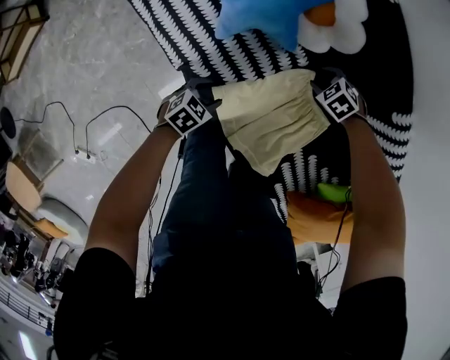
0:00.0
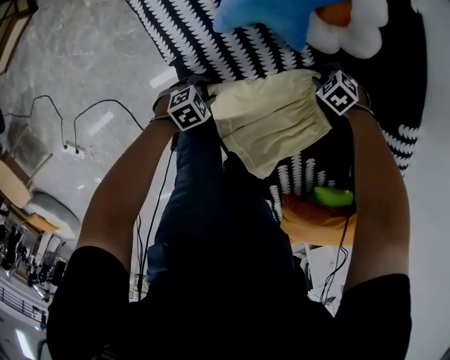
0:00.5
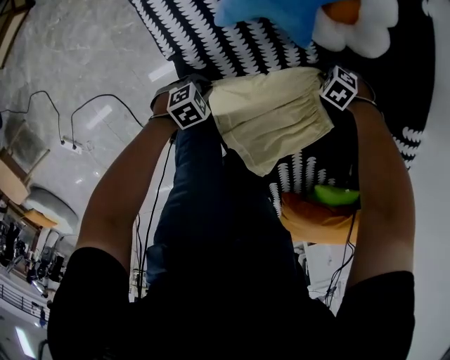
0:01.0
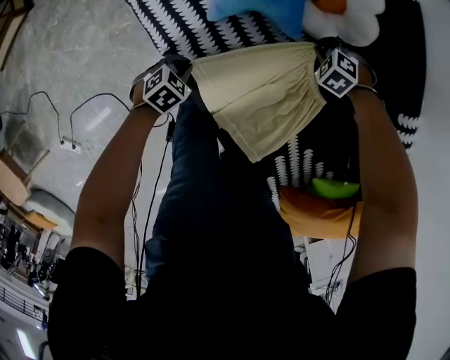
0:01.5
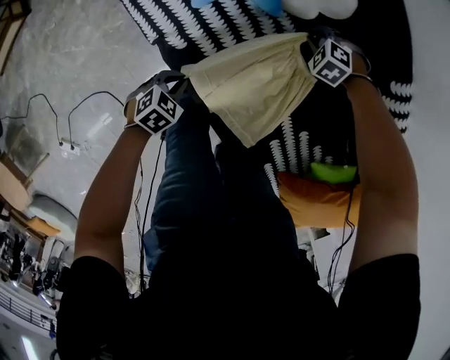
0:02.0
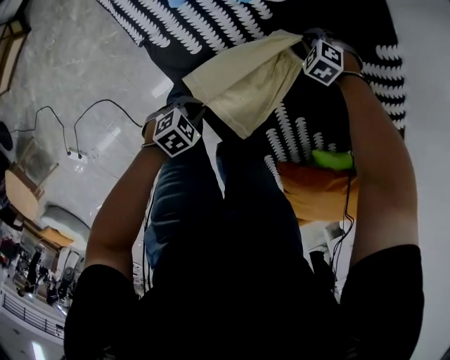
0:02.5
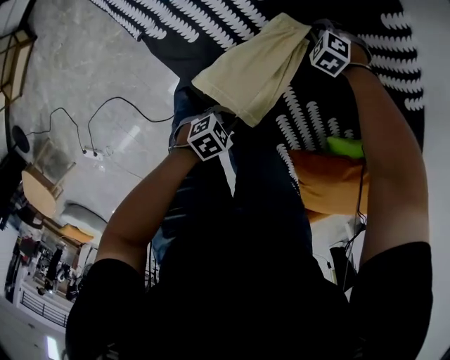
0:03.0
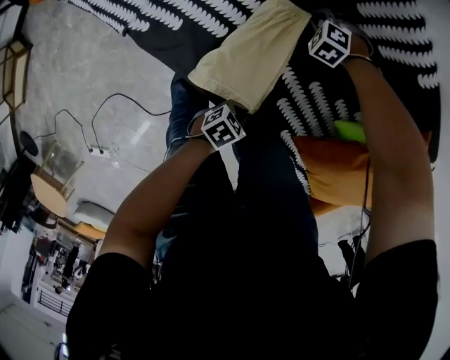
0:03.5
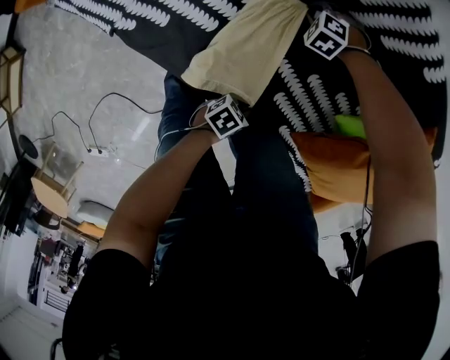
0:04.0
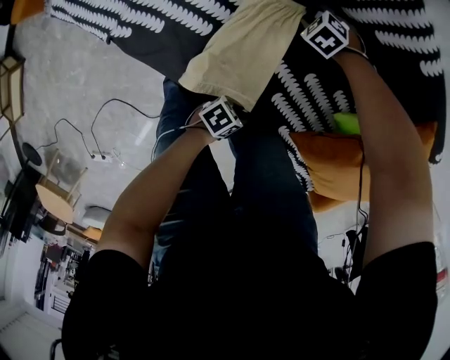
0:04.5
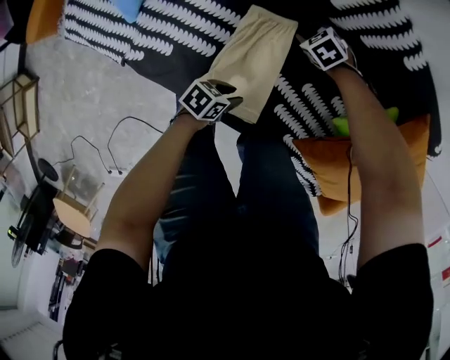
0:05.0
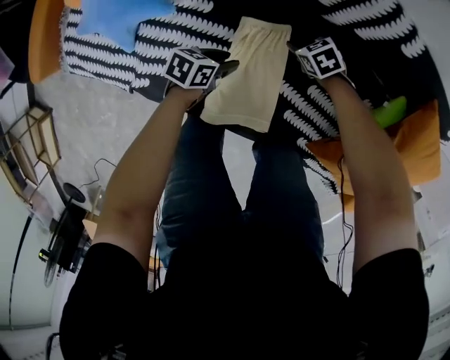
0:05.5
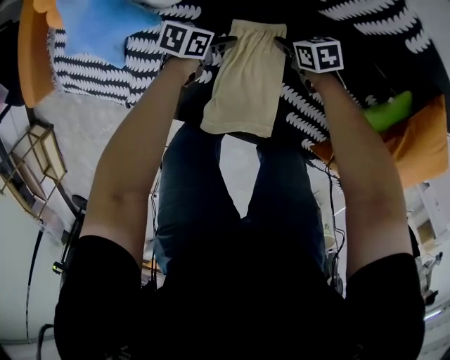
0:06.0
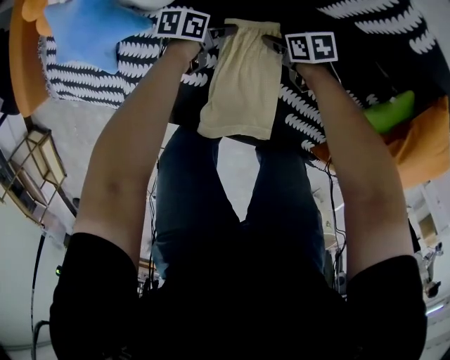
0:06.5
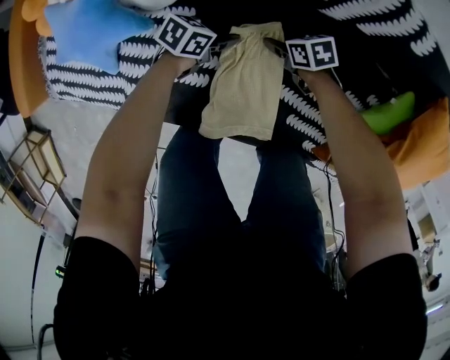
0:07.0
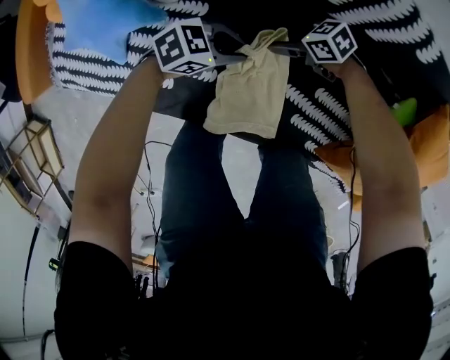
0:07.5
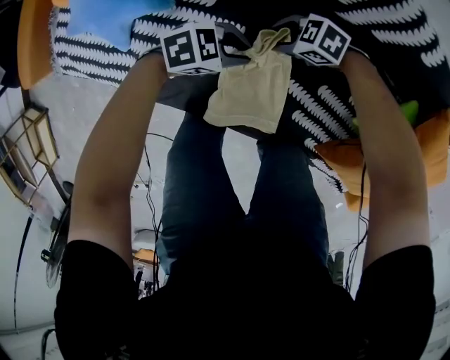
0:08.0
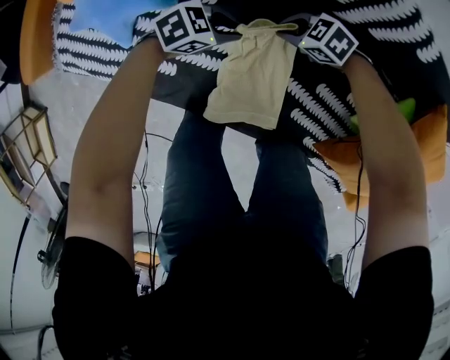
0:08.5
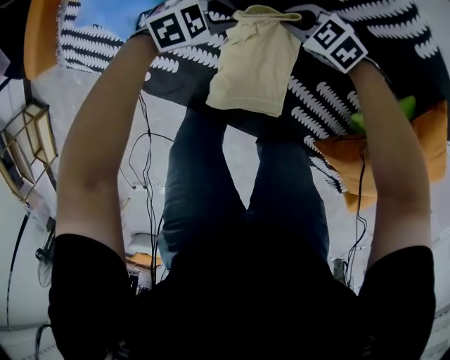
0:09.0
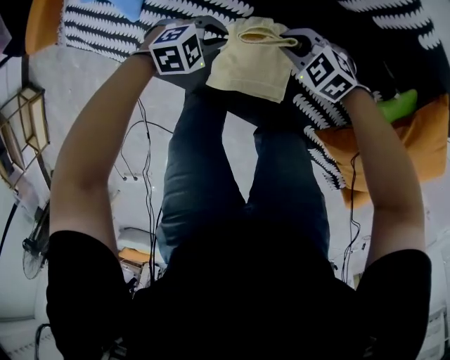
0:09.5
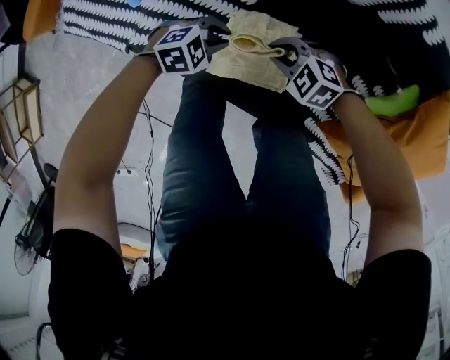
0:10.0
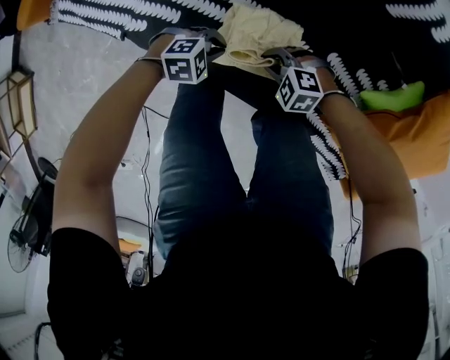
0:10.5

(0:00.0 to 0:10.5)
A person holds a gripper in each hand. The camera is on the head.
0:00.0 - 0:02.0: The left gripper travels downward and back again, some 10 cm each way, and closes; the right gripper reaches some 10 cm downward, then returns, changes its angle by about 30 degrees, and closes up.
0:02.0 - 0:04.0: The right gripper changes place by about 25 cm, while the left gripper shifts by about 40 cm, and turns by roughly 30 degrees.
0:04.0 - 0:06.5: The right gripper rotates around the line of its fingers by some 90 degrees, clockwise from behind, and opens up. The left gripper moves approximately 40 cm, turns by some 20 degrees, and opens its fingers.
0:06.5 - 0:08.5: Both grippers move upward, some 10 cm. The left gripper rolls clockwise, seen from behind, by about 60 degrees, and closes; the right gripper twists about 50 degrees counterclockwise, seen from behind, and closes its fingers.
0:08.5 - 0:10.5: The left gripper changes place by about 25 cm, and swivels roughly 20 degrees, while the right gripper changes place by approximately 25 cm, and turns by roughly 30 degrees.

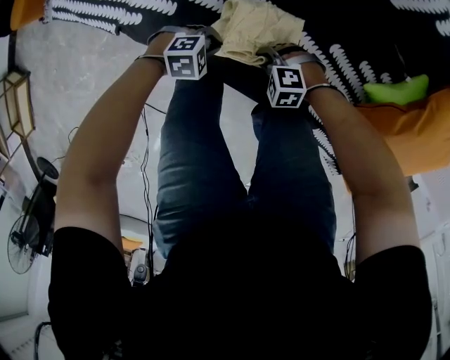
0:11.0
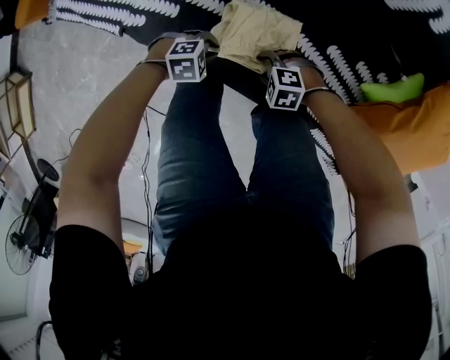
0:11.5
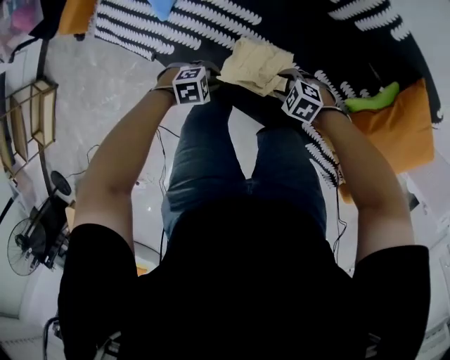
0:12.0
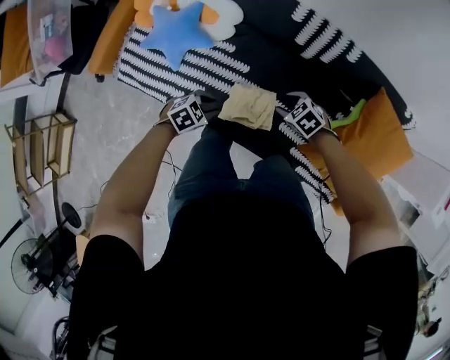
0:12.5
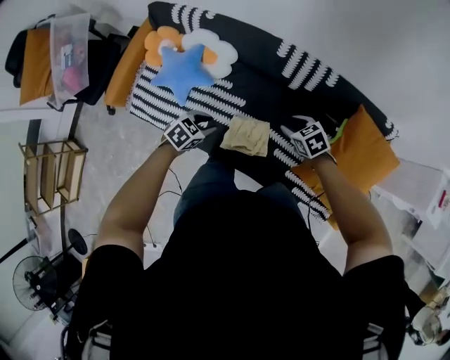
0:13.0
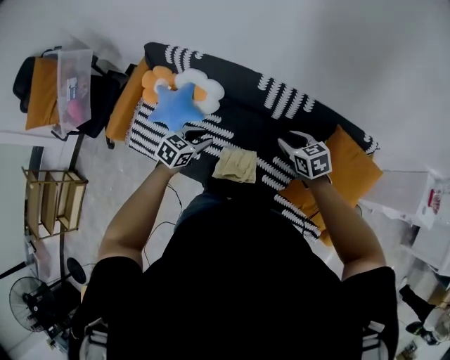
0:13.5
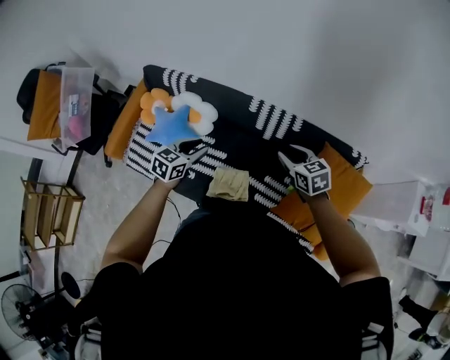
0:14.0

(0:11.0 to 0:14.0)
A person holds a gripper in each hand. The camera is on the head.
0:11.0 - 0:12.5: Both grippers travel together upward, approximately 30 cm. The left gripper swivels about 20 degrees, and opens its fingers. Meanwhile the right gripper twists some 50 degrees clockwise, seen from behind, and opens its fingers.
0:12.5 - 0:14.0: The grippers both shift upward by approximately 30 cm. The left gripper changes its angle by some 40 degrees, while the right gripper turns by some 40 degrees.

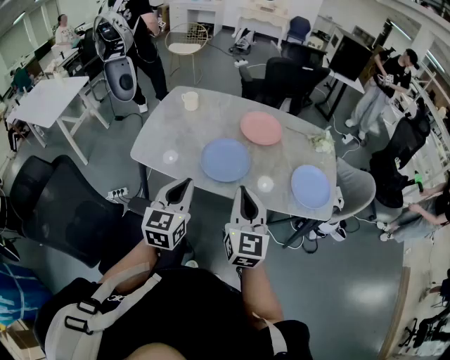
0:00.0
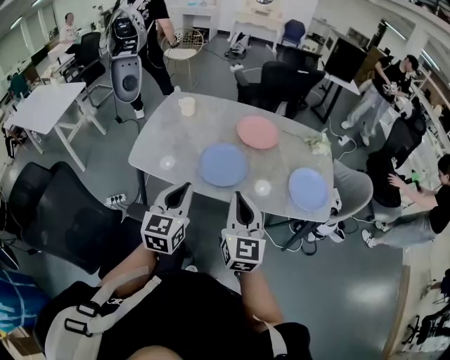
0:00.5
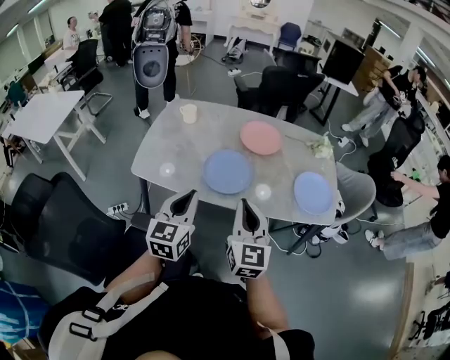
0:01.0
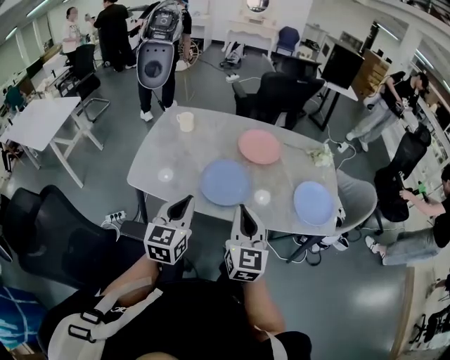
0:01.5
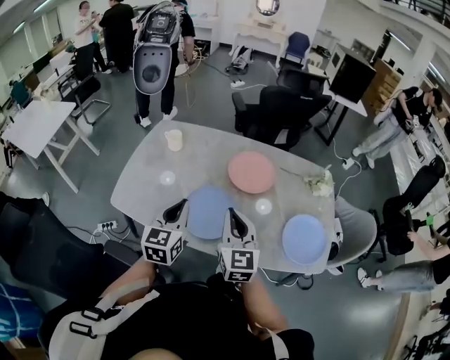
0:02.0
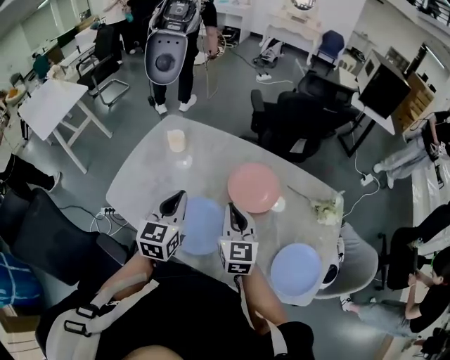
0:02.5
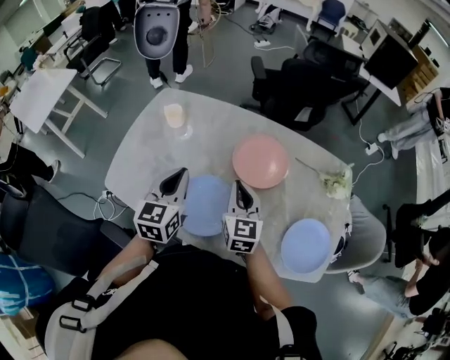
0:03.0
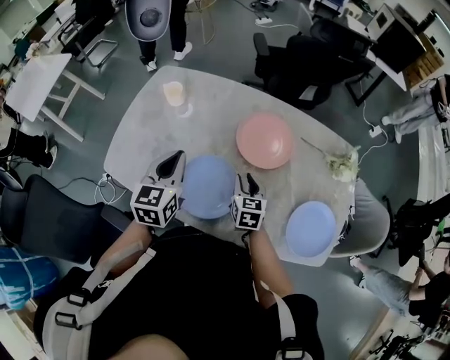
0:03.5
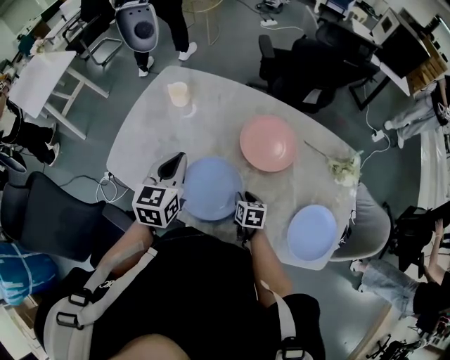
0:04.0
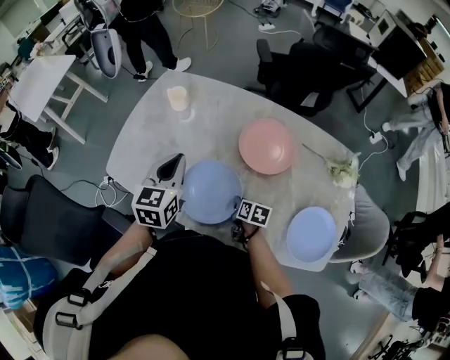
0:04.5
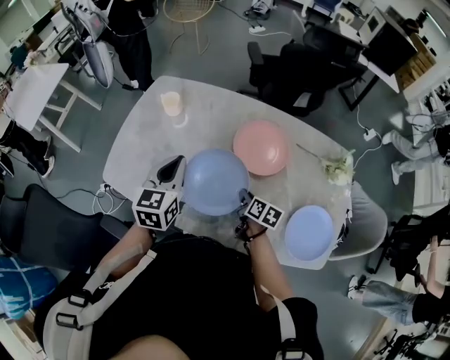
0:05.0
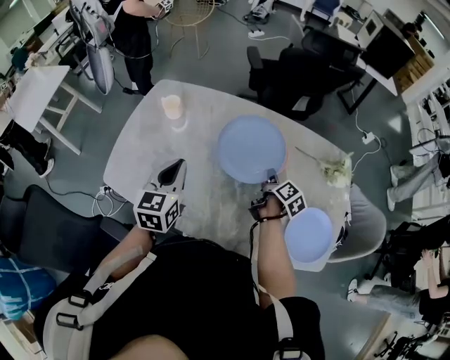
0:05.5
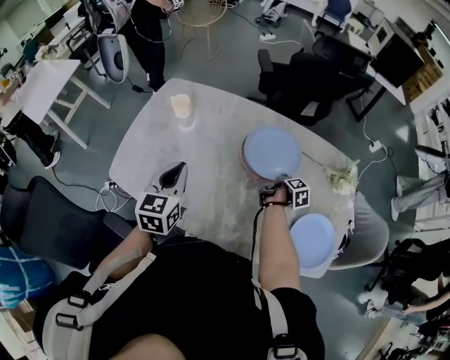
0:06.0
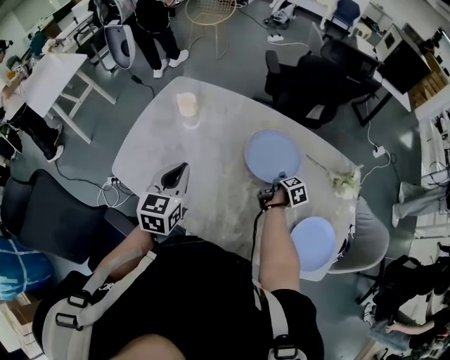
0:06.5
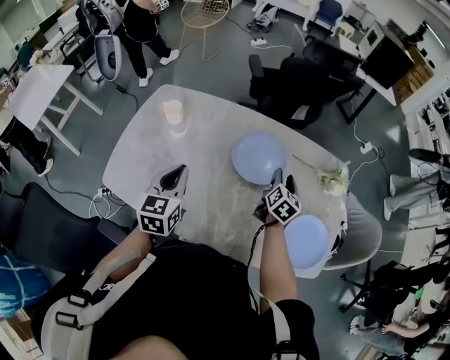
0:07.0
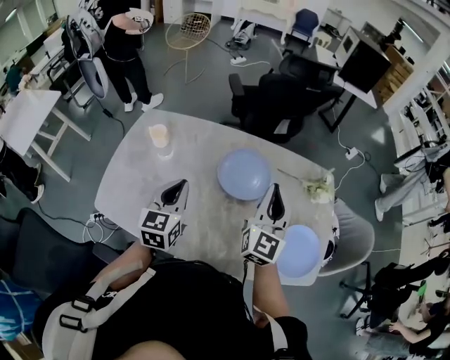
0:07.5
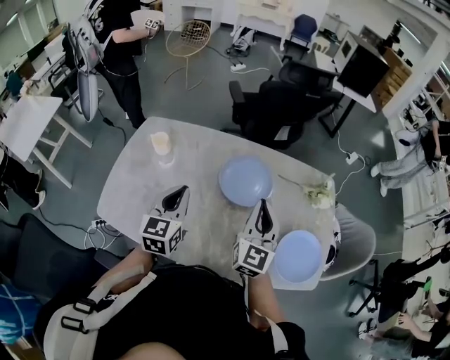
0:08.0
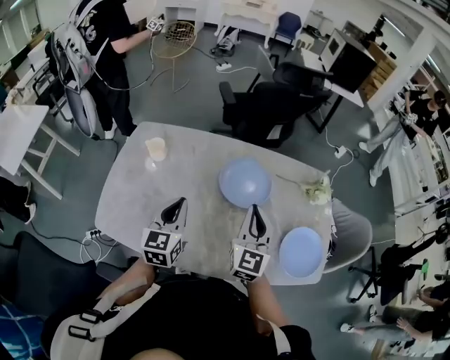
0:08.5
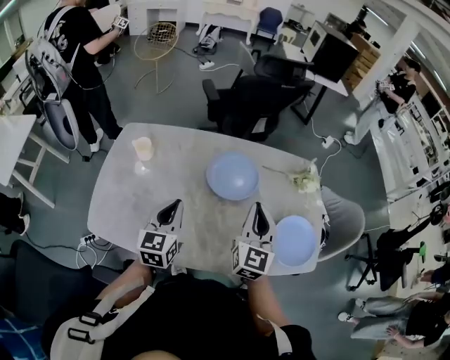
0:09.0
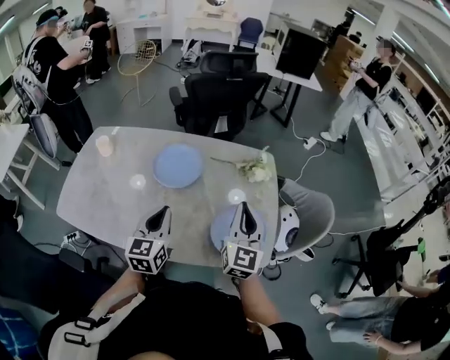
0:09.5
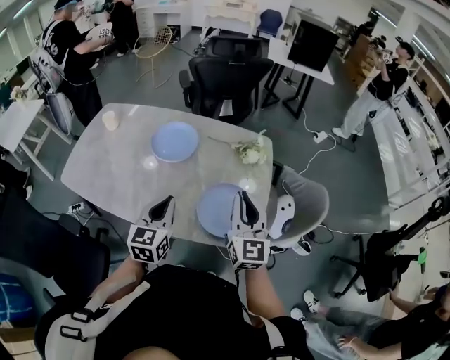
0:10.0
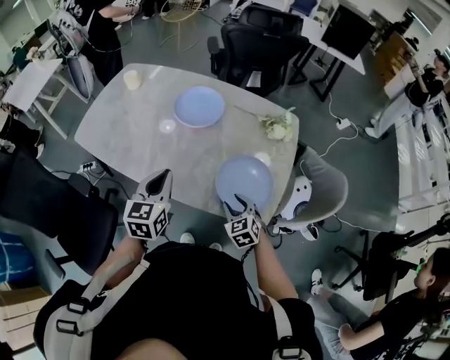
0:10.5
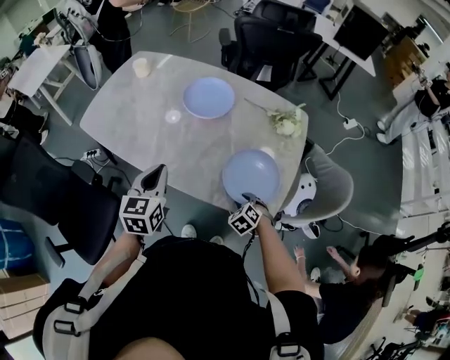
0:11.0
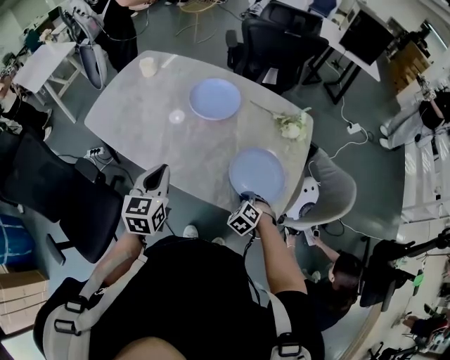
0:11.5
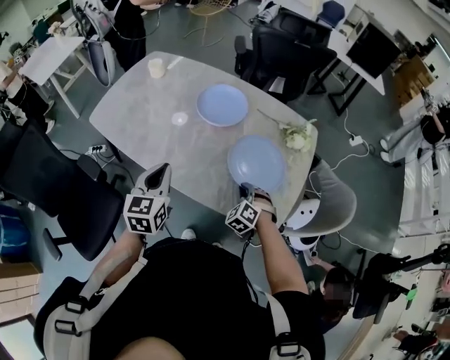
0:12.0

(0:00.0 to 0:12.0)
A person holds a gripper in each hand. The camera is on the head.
0:00.0 - 0:02.0: The grippers both shift forward by some 20 cm.
0:02.0 - 0:04.0: The left gripper goes approximately 10 cm forward. The right gripper heads downward, covering approximately 30 cm, tips its fingers downward by approximately 50 degrees, and opens its fingers.
0:04.0 - 0:06.0: The right gripper moves to the right and forward, roughly 20 cm, and twists some 70 degrees clockwise, seen from behind.
0:06.0 - 0:08.0: The right gripper travels upward by about 30 cm, rolls counterclockwise, seen from behind, by some 70 degrees, and opens, then closes once more. The left gripper ends up roughly 5 cm from where it was.
0:08.0 - 0:10.0: The two grippers go approximately 35 cm to the right and backward.
0:10.0 - 0:12.0: The right gripper is displaced downward by about 30 cm, angles its fingers downward, by some 50 degrees, and opens and closes again. The left gripper moves to the left, approximately 15 cm.

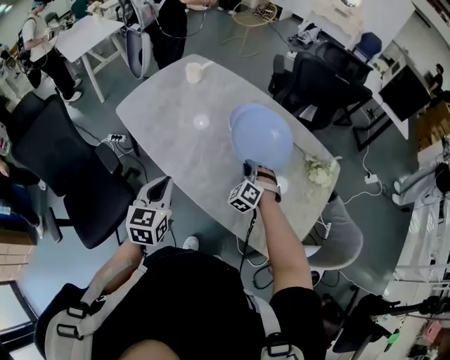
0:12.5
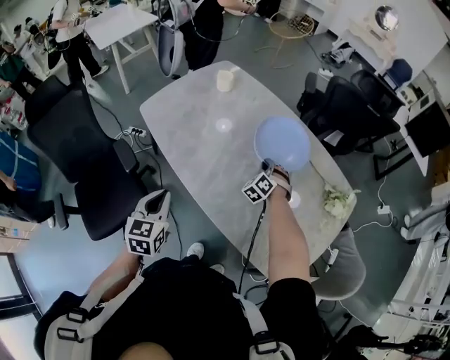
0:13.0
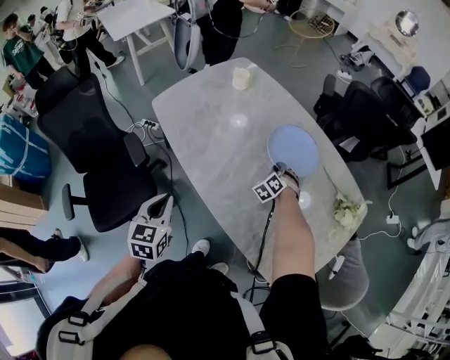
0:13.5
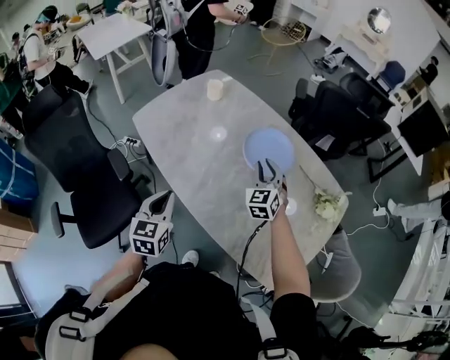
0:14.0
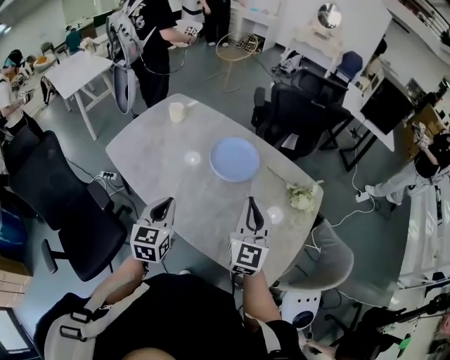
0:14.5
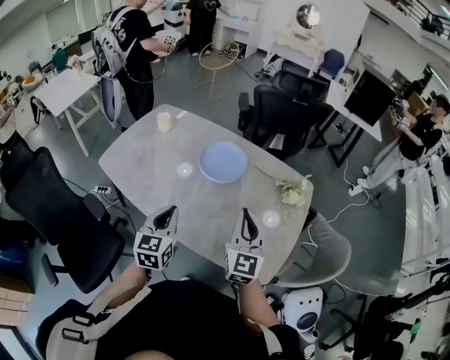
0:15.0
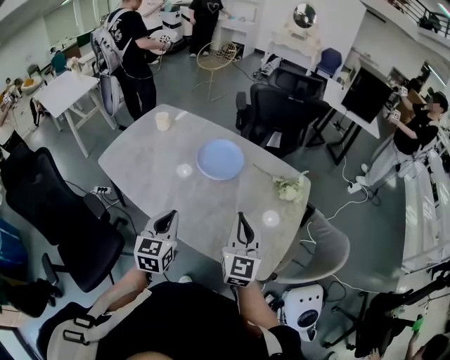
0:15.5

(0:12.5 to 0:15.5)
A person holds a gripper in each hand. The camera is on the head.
0:12.5 - 0:14.0: The right gripper moves upward and forward, some 15 cm, and rotates roughly 40 degrees.
0:14.0 - 0:15.5: The right gripper is displaced backward, upward and to the right by roughly 30 cm, and rotates roughly 40 degrees. The left gripper is displaced to the right by about 15 cm.
